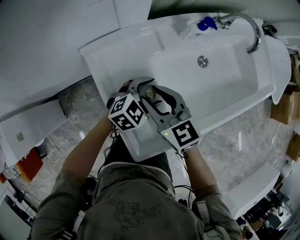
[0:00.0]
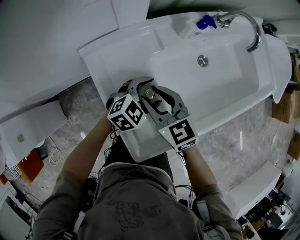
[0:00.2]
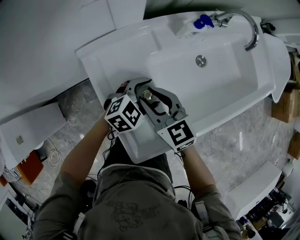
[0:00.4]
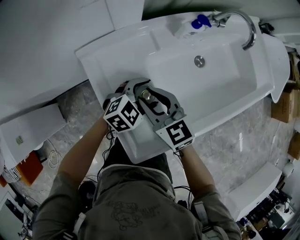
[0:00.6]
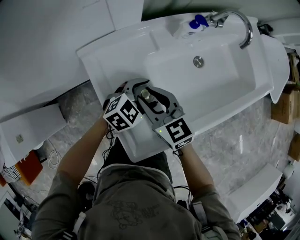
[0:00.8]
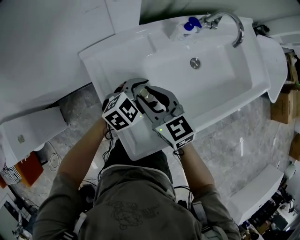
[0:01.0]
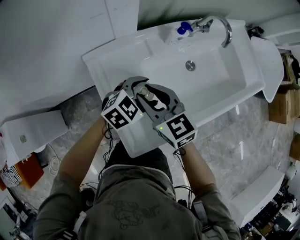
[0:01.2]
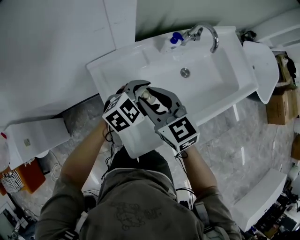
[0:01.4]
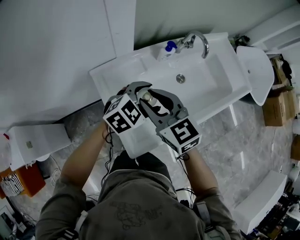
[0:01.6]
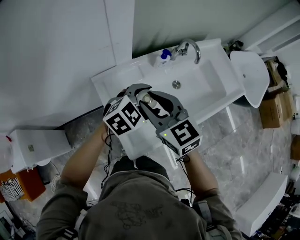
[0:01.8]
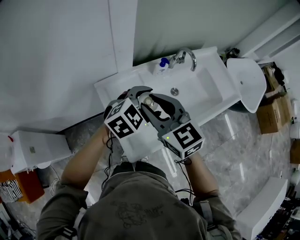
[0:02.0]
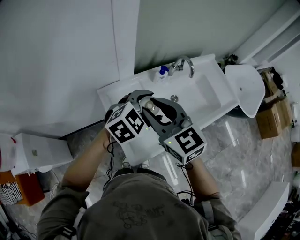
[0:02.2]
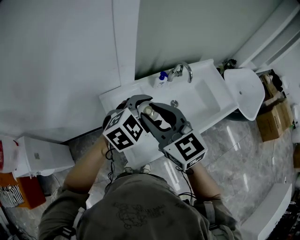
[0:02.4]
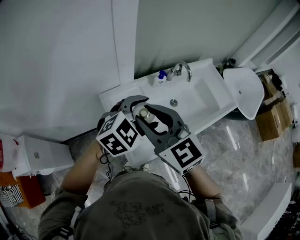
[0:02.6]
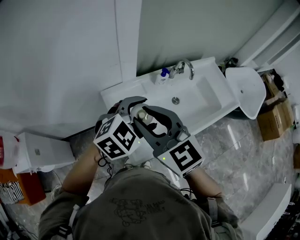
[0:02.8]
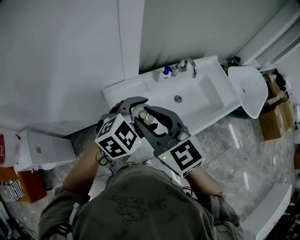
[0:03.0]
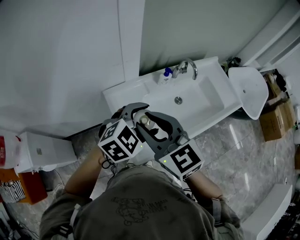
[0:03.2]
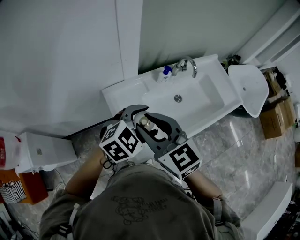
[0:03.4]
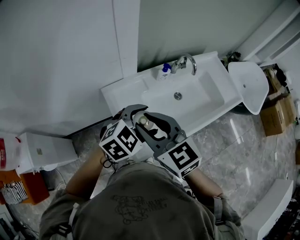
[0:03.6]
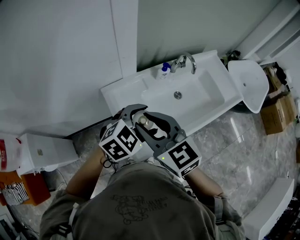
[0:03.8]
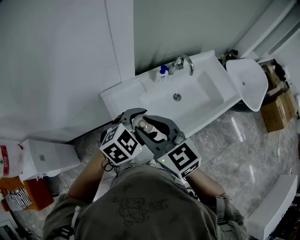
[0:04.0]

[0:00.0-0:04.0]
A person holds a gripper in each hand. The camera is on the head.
0:00.0 to 0:01.4: The two grippers go some 10 cm upward.
0:01.4 to 0:02.6: The grippers both shift upward by roughly 20 cm.
0:02.6 to 0:04.0: Both grippers move downward, some 5 cm.

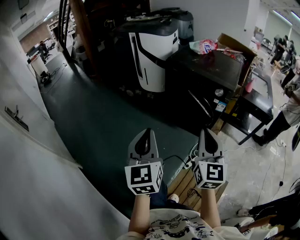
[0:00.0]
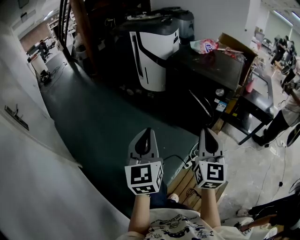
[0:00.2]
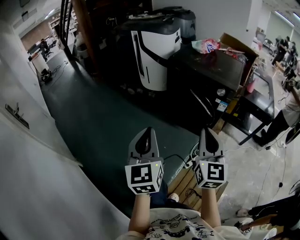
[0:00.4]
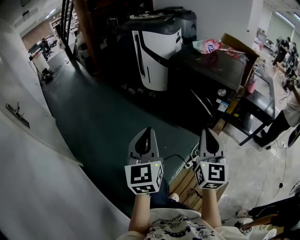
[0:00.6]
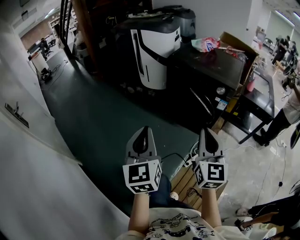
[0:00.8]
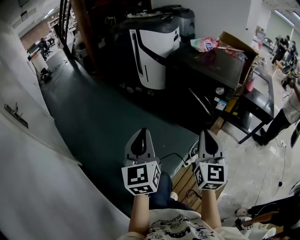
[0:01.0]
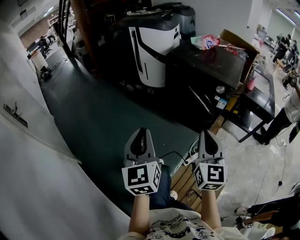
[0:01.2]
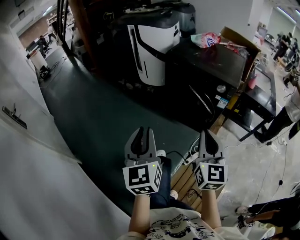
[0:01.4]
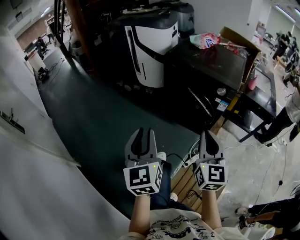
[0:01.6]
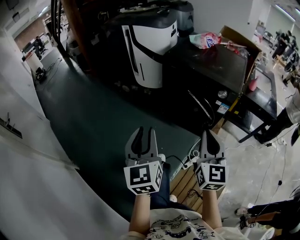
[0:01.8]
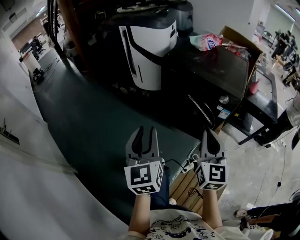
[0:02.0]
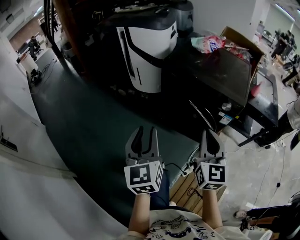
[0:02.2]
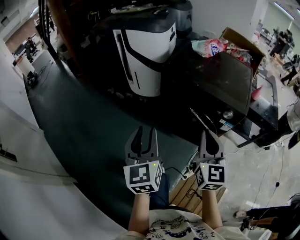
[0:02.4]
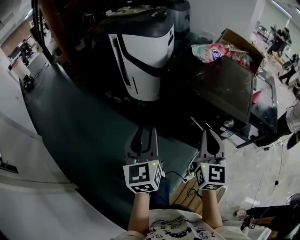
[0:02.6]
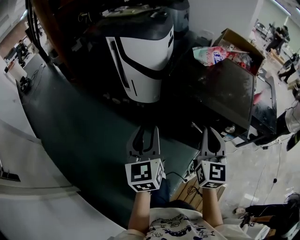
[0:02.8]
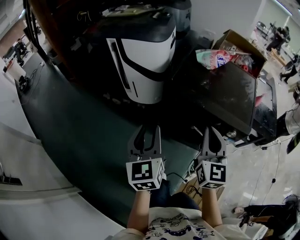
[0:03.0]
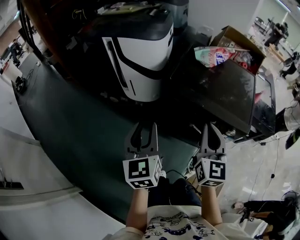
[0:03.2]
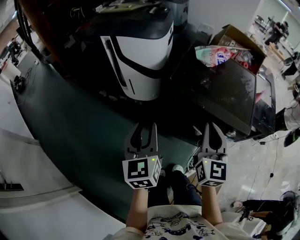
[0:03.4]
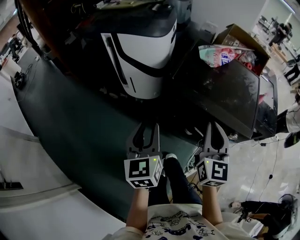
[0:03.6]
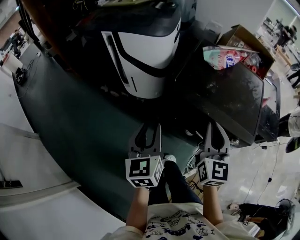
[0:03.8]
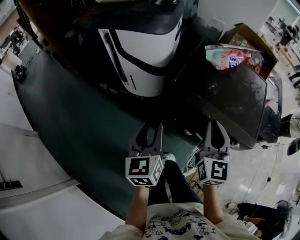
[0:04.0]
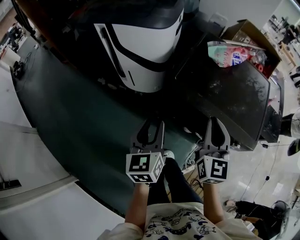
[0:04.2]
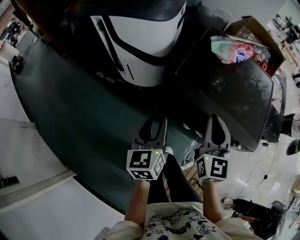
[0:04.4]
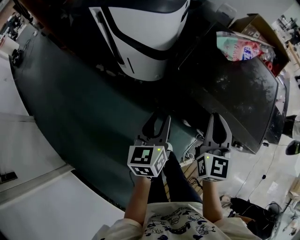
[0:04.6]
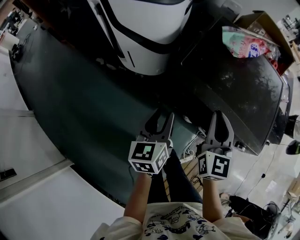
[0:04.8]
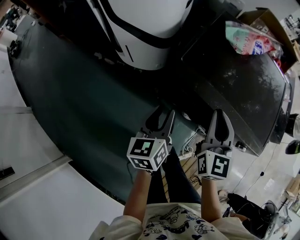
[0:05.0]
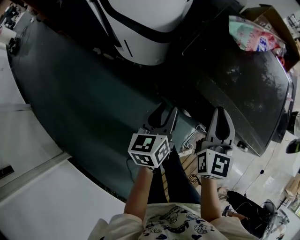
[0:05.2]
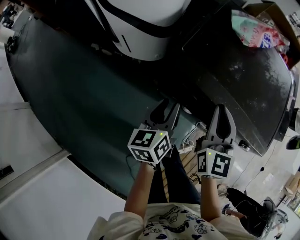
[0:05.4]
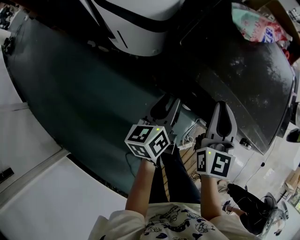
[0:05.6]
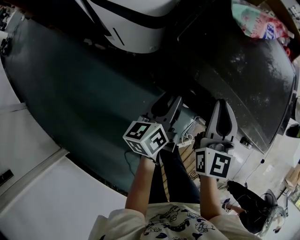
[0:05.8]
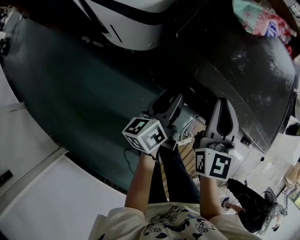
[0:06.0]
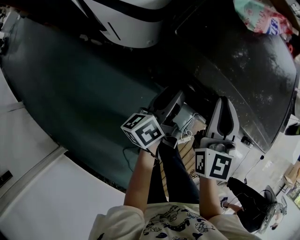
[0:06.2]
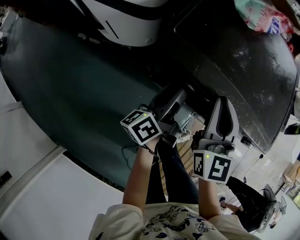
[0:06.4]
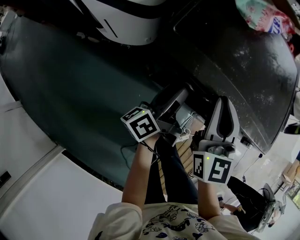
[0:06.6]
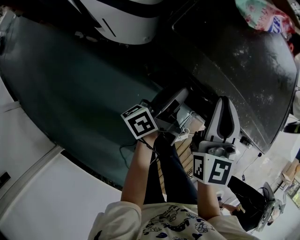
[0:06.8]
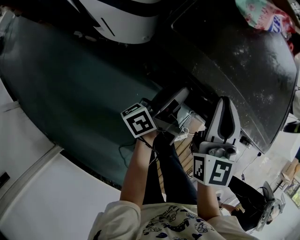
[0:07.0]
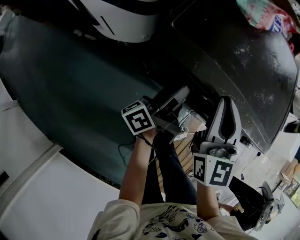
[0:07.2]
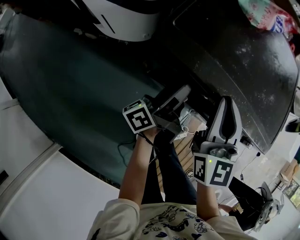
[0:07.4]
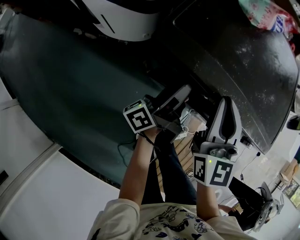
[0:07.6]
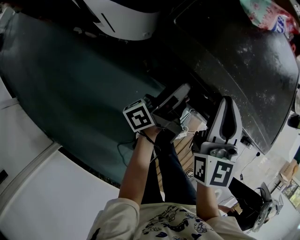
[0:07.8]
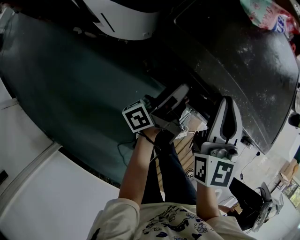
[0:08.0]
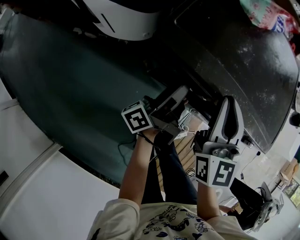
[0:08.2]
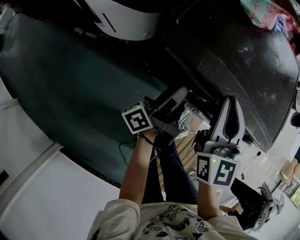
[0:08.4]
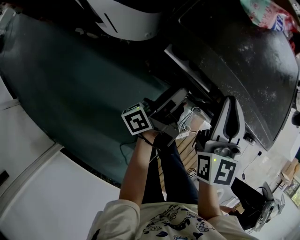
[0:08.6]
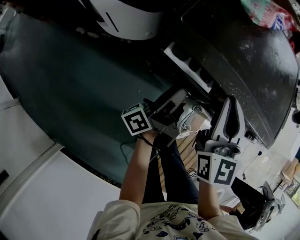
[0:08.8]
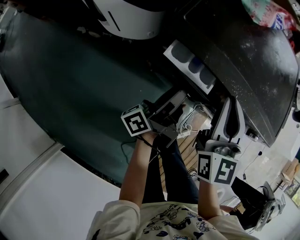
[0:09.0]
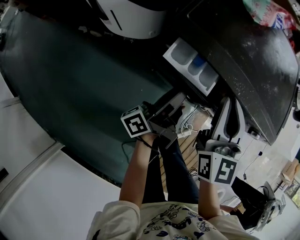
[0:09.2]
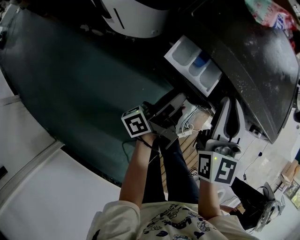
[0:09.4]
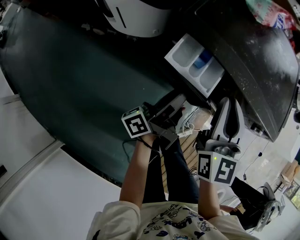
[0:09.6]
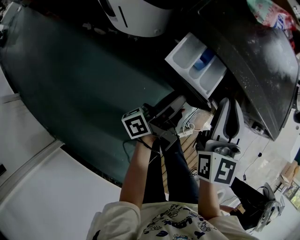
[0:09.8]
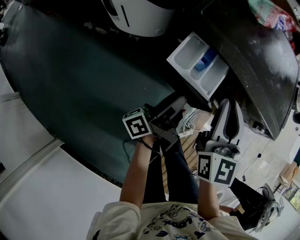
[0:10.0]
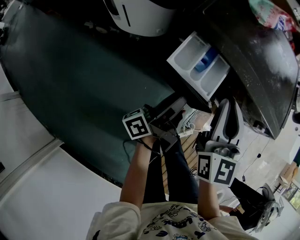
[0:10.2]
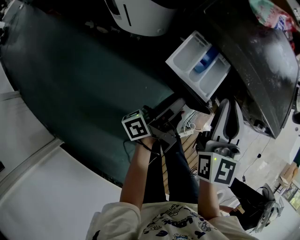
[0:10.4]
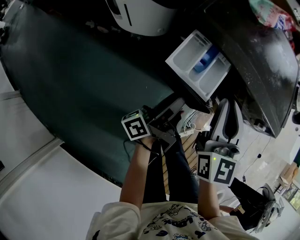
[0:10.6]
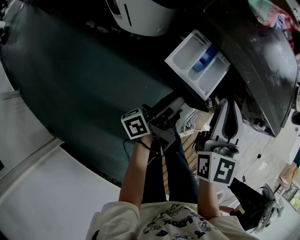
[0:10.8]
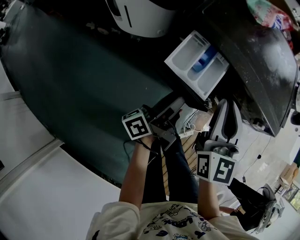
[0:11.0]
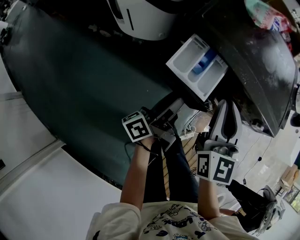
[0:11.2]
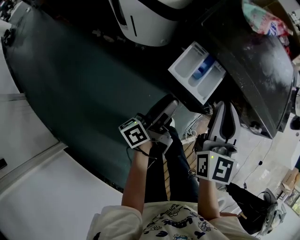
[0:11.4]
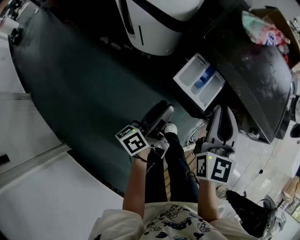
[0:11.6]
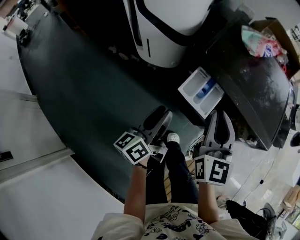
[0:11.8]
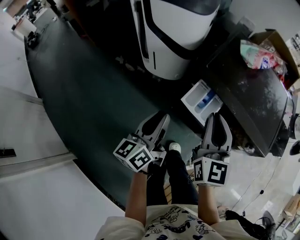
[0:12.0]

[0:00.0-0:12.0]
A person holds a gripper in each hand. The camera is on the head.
0:00.0 to 0:01.6: Both grippers move forward, some 5 cm.
0:01.6 to 0:03.0: The pair of grippers is taken forward, about 50 cm.
0:03.0 to 0:04.4: The right gripper goes roughly 20 cm forward. Meanwhile the left gripper goes some 25 cm forward and downward.
0:04.4 to 0:06.0: The left gripper goes roughly 25 cm downward, forward and to the right, and rotates about 40 degrees. The right gripper goes some 15 cm downward and forward.
0:06.0 to 0:07.6: The left gripper rotates some 40 degrees.
0:07.6 to 0:09.0: The left gripper travels backward by roughly 5 cm.
0:09.0 to 0:10.4: Both grippers travel together backward, roughly 10 cm.
0:10.4 to 0:12.0: The two grippers go approximately 20 cm upward and to the left. The left gripper rotates around the line of its fingers by approximately 50 degrees, clockwise from behind, and closes its fingers.

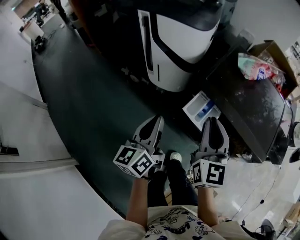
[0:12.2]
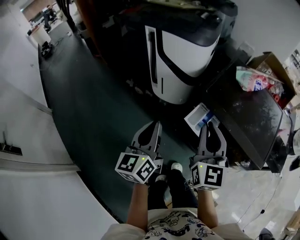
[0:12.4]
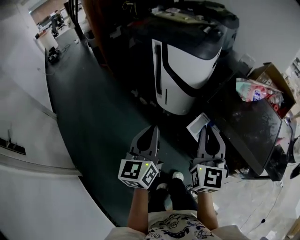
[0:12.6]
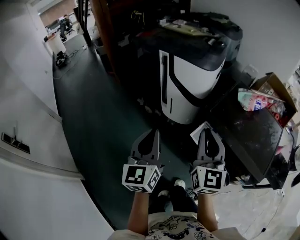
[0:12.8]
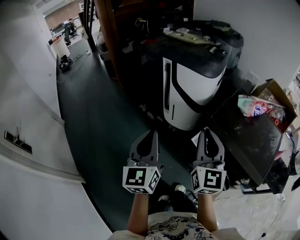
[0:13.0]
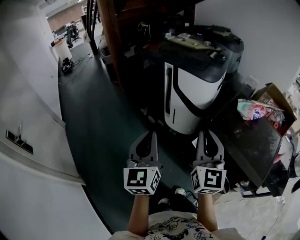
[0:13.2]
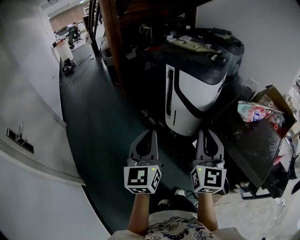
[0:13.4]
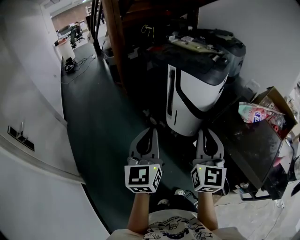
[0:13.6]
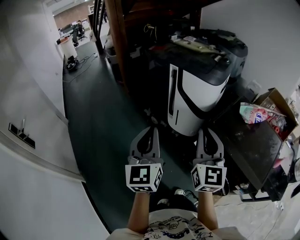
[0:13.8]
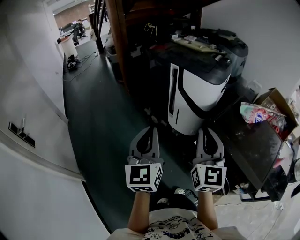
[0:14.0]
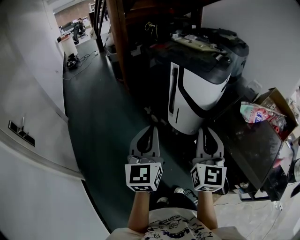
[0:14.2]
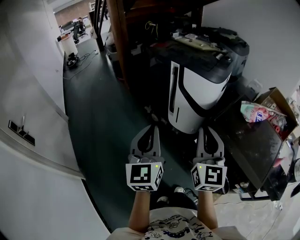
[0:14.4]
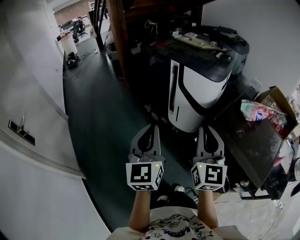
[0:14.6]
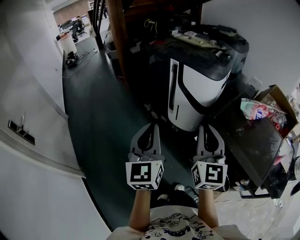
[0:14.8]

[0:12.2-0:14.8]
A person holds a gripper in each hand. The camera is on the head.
0:12.2 to 0:13.4: The two grippers go approximately 20 cm upward and to the left. The left gripper rotates approximately 40 degrees.
0:13.4 to 0:14.8: The grippers stay close to where they were, moving slightly.

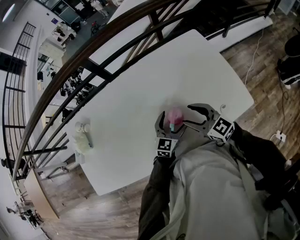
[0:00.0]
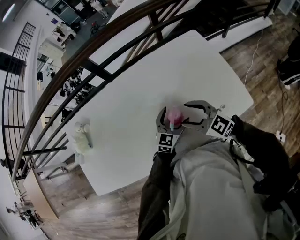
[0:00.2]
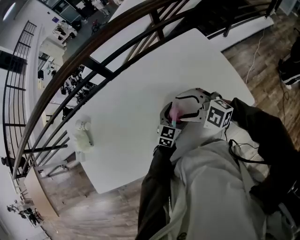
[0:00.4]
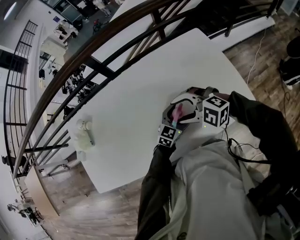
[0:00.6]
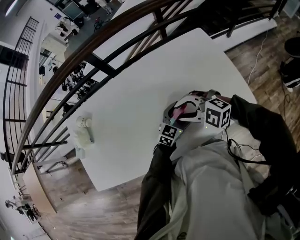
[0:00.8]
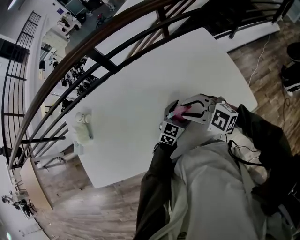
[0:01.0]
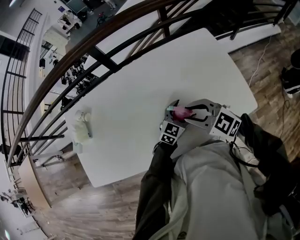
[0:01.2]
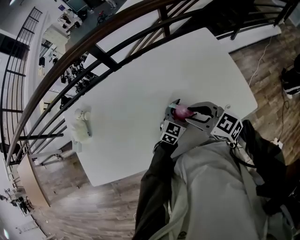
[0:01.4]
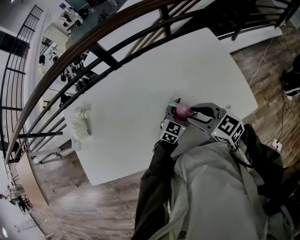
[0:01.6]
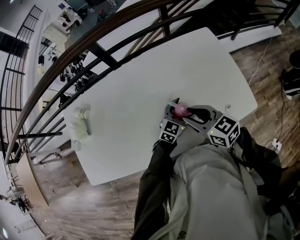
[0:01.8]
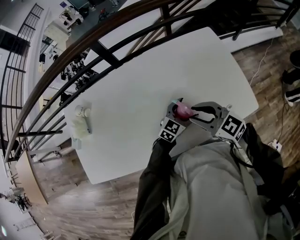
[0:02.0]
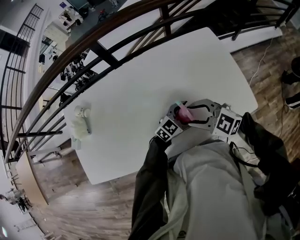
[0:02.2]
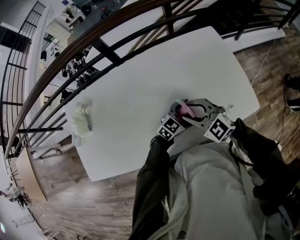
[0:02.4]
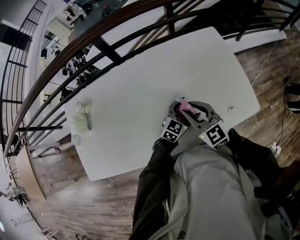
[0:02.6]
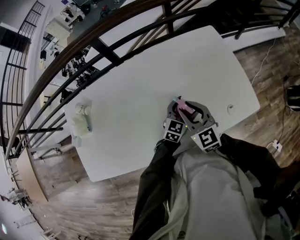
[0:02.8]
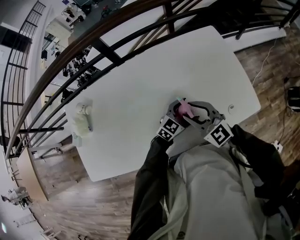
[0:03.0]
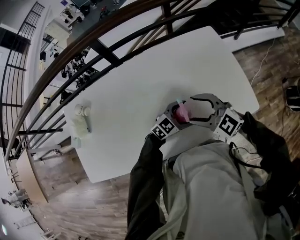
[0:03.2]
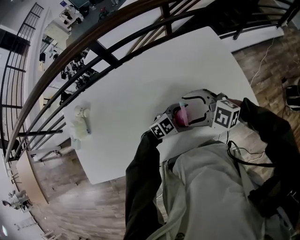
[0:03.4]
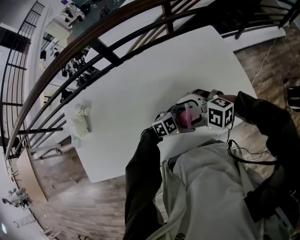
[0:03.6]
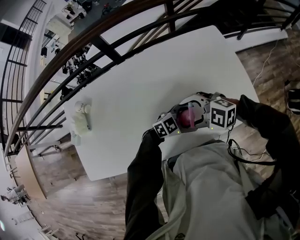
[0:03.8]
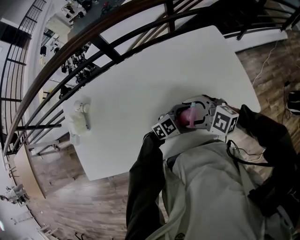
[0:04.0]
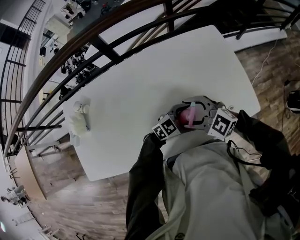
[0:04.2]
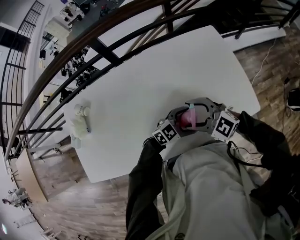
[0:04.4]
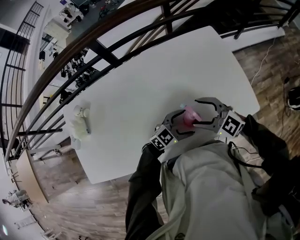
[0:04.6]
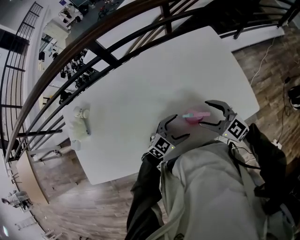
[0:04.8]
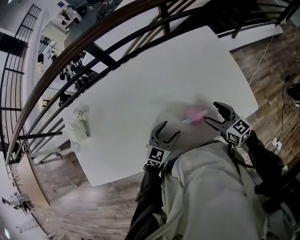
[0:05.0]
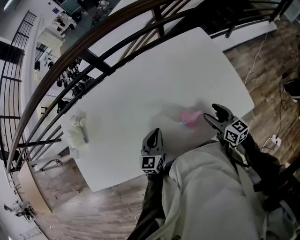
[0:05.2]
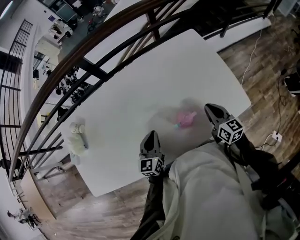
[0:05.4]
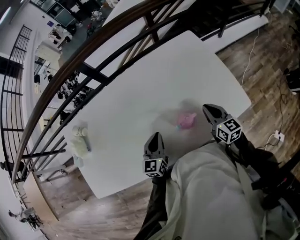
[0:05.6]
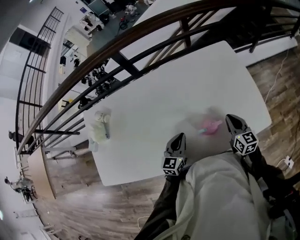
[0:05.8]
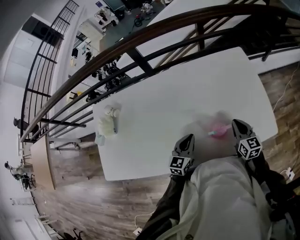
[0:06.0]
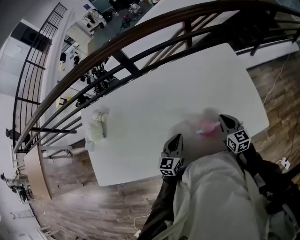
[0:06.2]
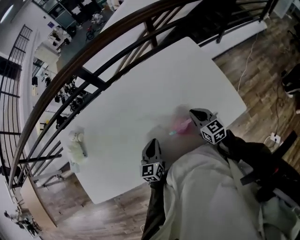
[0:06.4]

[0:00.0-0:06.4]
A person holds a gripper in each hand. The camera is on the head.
0:01.6 to 0:03.2: The right gripper swivels about 30 degrees, and opens up. The left gripper rotates about 20 degrees.
0:03.2 to 0:04.8: The left gripper changes place by about 5 cm; the right gripper shifts by approximately 5 cm.
0:04.8 to 0:06.4: The right gripper heads downward and forward, covering roughly 10 cm, travels to the right and back again, about 10 cm each way, changes its angle by some 30 degrees, and closes; the left gripper heads to the left, covering some 10 cm, changes its angle by about 50 degrees, and closes up.
